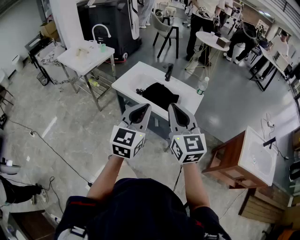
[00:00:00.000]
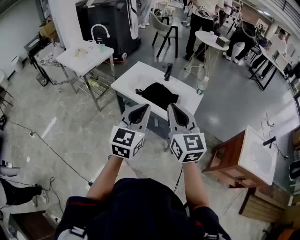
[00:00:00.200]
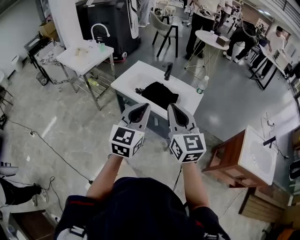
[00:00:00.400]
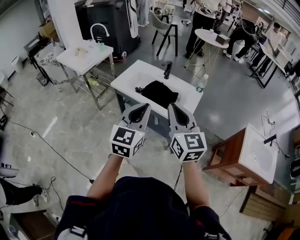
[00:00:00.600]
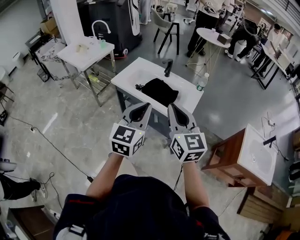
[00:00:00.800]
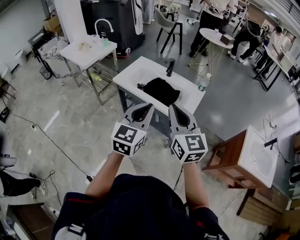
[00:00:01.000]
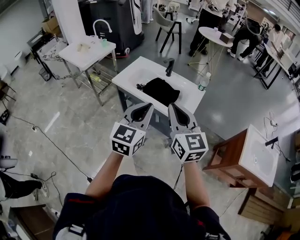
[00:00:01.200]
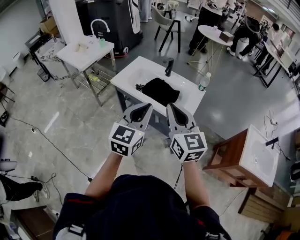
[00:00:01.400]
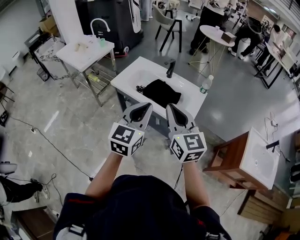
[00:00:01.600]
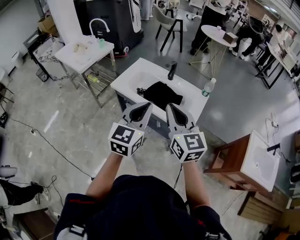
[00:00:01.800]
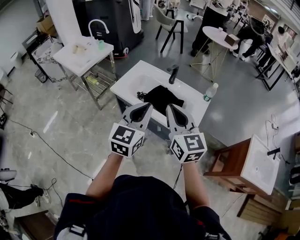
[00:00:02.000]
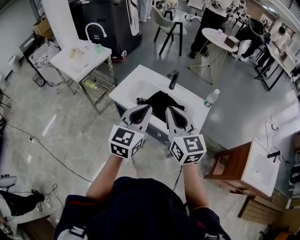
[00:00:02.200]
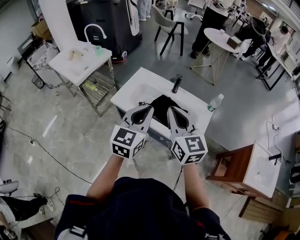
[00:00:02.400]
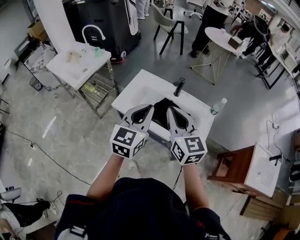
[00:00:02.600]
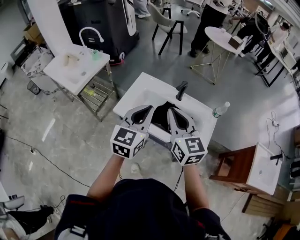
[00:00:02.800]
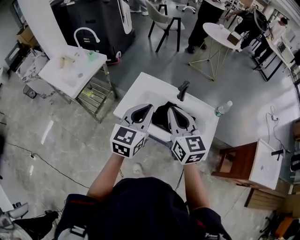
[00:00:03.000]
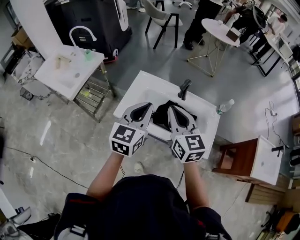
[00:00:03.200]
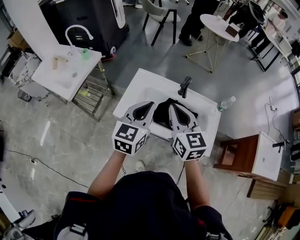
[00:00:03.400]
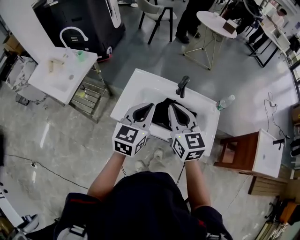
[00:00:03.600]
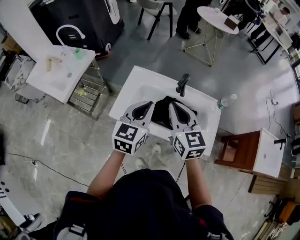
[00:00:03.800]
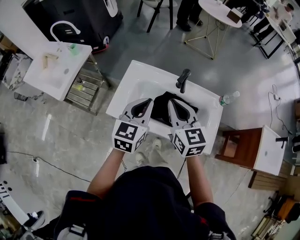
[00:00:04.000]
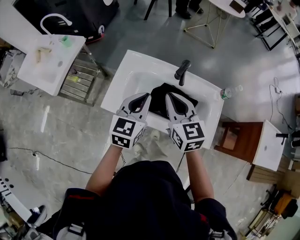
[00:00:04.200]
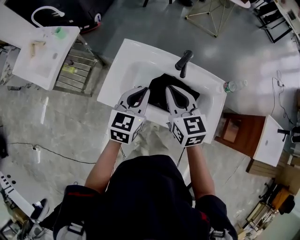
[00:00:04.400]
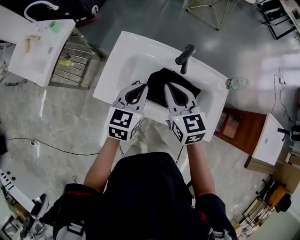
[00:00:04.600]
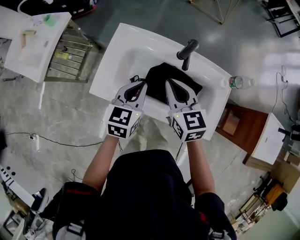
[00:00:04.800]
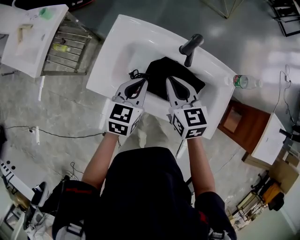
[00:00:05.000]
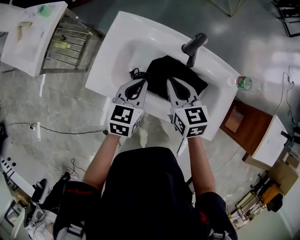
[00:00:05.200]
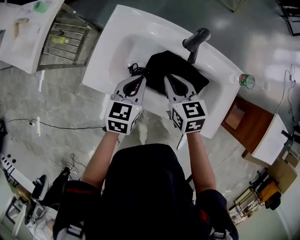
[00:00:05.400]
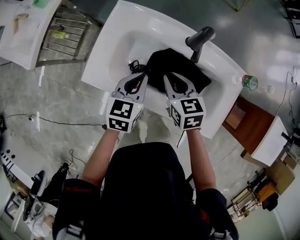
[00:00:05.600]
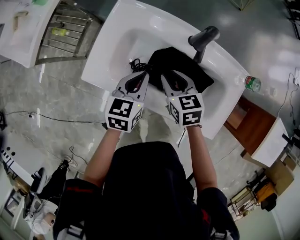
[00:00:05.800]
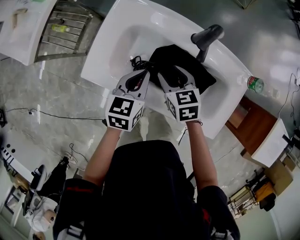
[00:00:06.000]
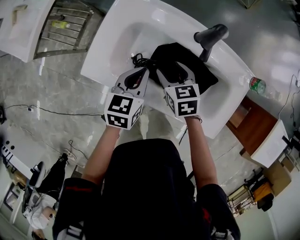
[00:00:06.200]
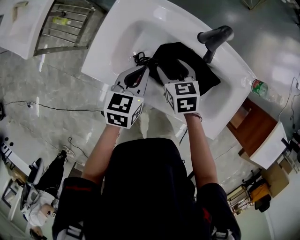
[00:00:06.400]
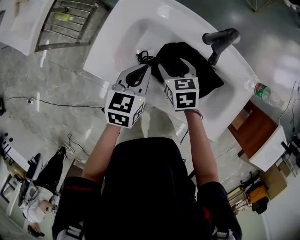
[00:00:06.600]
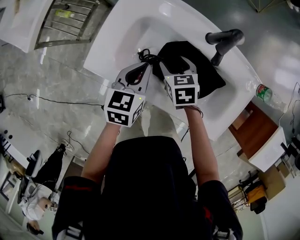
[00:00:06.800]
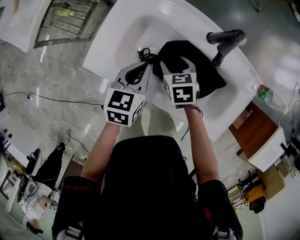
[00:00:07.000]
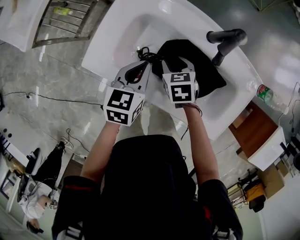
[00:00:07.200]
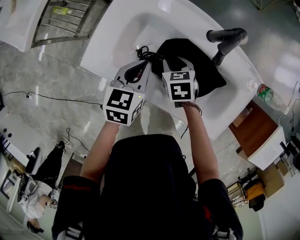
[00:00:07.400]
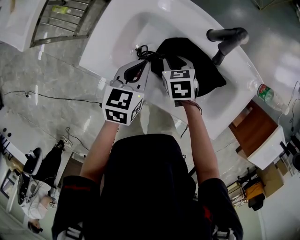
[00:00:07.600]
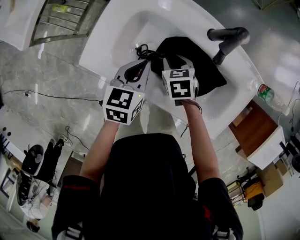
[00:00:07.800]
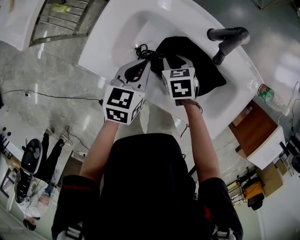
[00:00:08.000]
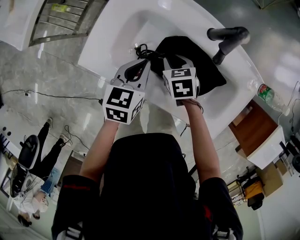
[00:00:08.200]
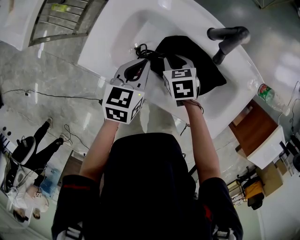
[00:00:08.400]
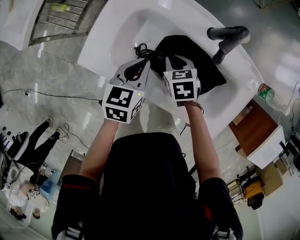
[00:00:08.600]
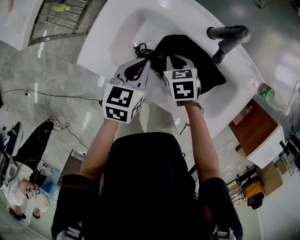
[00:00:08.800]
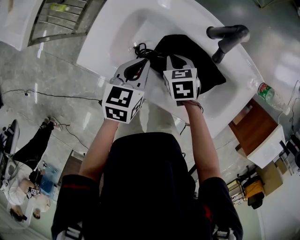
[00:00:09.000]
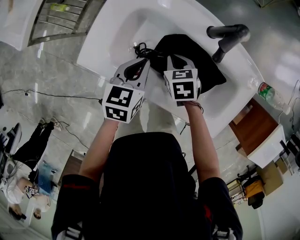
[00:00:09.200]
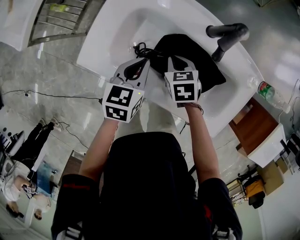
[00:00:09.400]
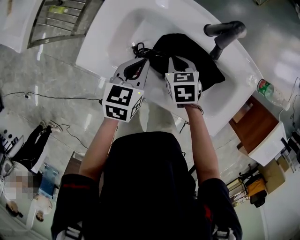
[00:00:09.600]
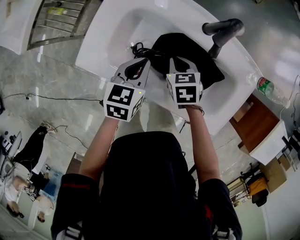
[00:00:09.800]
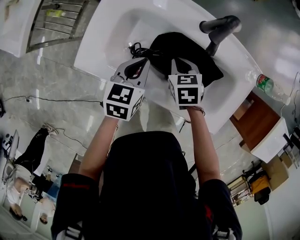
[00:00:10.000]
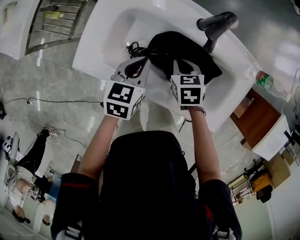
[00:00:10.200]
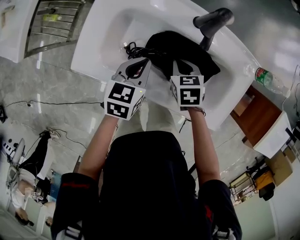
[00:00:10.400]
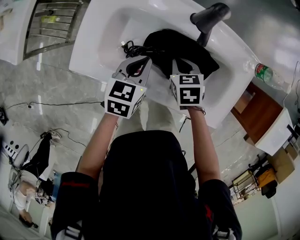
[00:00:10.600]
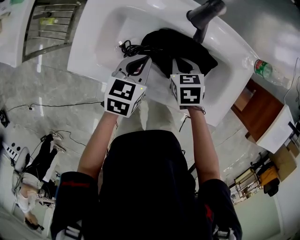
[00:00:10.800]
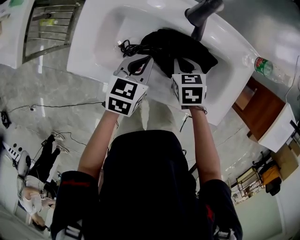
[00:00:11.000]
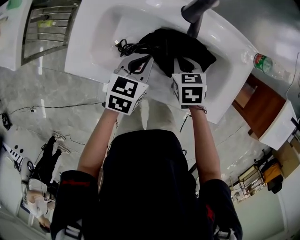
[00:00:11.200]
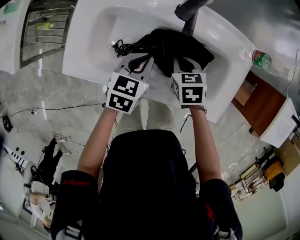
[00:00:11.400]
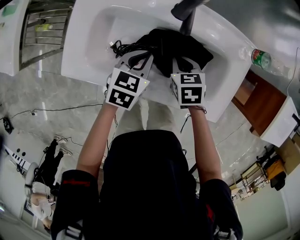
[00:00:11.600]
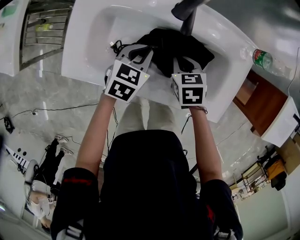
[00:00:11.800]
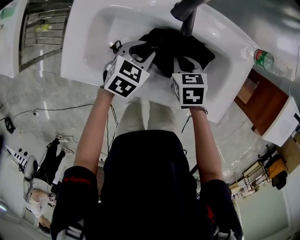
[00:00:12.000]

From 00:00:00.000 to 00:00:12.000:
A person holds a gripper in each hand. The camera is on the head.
From 00:00:00.000 to 00:00:01.600: The left gripper ends up approximately 5 cm from where it was; the right gripper moves approximately 5 cm.
From 00:00:01.600 to 00:00:03.000: Both grippers travel together forward and to the left, roughly 30 cm.
From 00:00:03.000 to 00:00:04.400: Both grippers move downward and forward, some 15 cm.
From 00:00:04.400 to 00:00:06.000: Both grippers move downward, approximately 20 cm. The right gripper rotates roughly 30 degrees, and opens up.
From 00:00:06.000 to 00:00:07.600: The right gripper travels downward by approximately 10 cm.
From 00:00:07.600 to 00:00:09.000: The right gripper closes up.
From 00:00:09.000 to 00:00:10.400: The right gripper shifts about 5 cm to the right.
From 00:00:10.400 to 00:00:12.000: The left gripper shifts approximately 10 cm to the right and downward, rotates approximately 30 degrees, and opens.

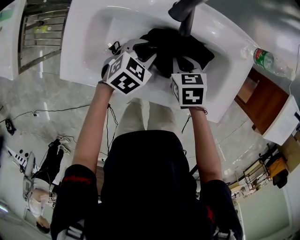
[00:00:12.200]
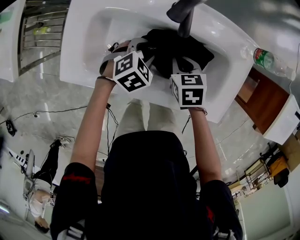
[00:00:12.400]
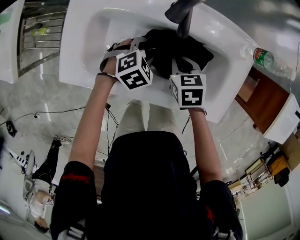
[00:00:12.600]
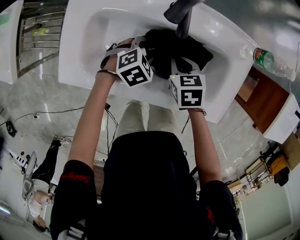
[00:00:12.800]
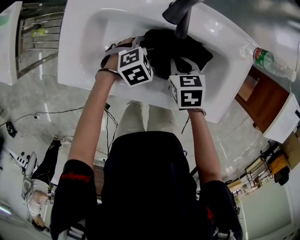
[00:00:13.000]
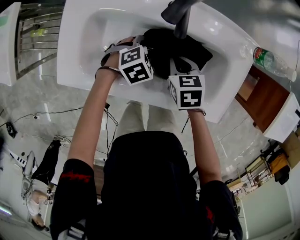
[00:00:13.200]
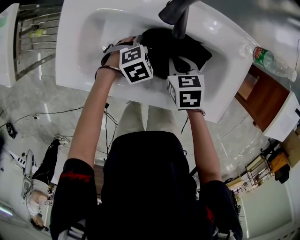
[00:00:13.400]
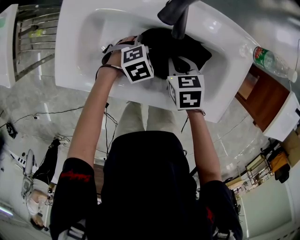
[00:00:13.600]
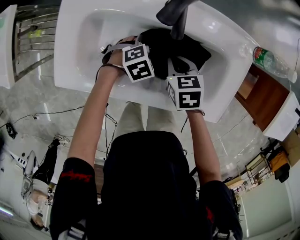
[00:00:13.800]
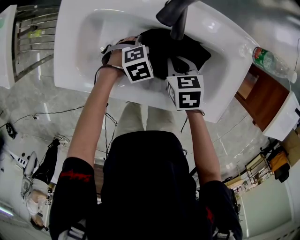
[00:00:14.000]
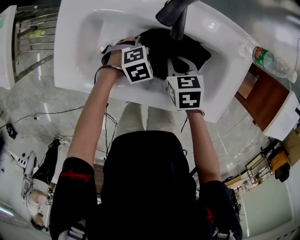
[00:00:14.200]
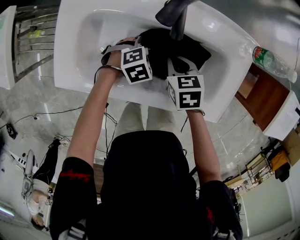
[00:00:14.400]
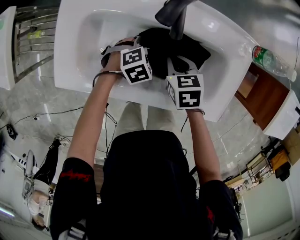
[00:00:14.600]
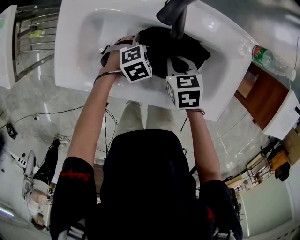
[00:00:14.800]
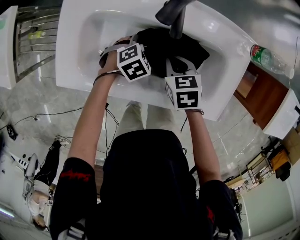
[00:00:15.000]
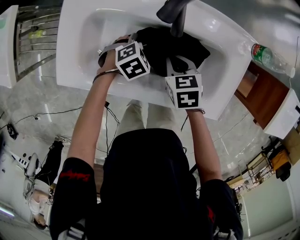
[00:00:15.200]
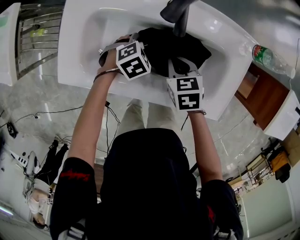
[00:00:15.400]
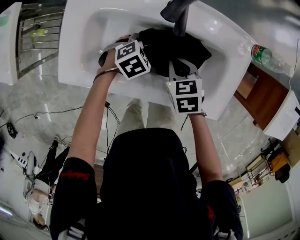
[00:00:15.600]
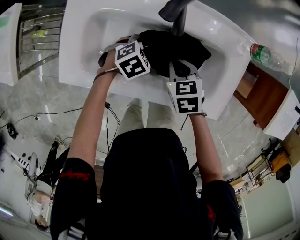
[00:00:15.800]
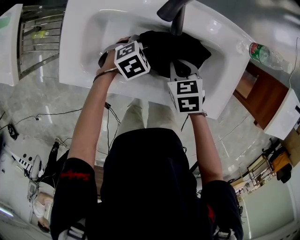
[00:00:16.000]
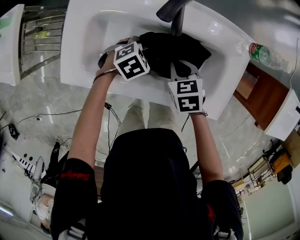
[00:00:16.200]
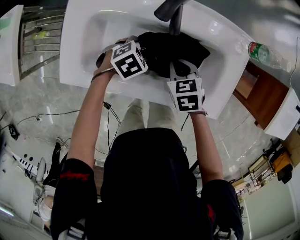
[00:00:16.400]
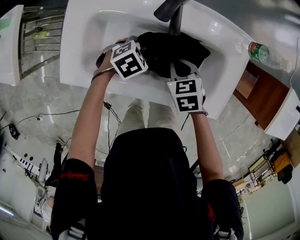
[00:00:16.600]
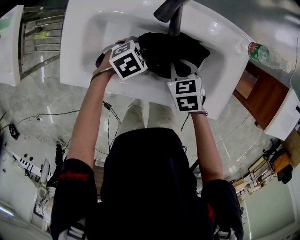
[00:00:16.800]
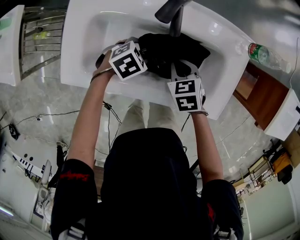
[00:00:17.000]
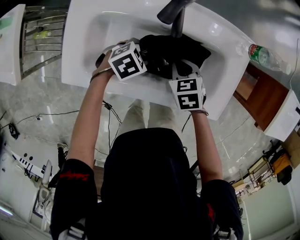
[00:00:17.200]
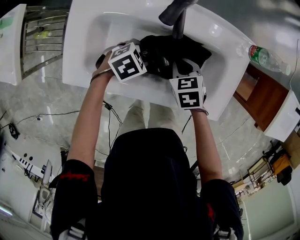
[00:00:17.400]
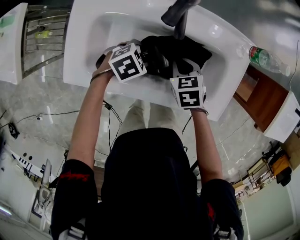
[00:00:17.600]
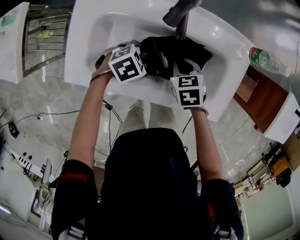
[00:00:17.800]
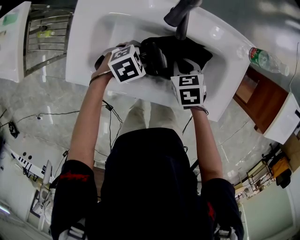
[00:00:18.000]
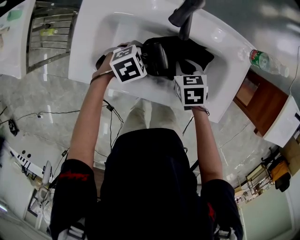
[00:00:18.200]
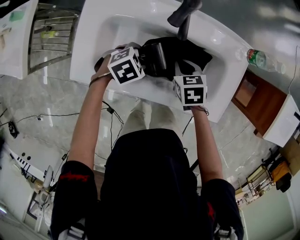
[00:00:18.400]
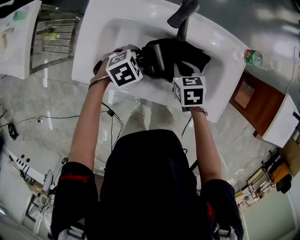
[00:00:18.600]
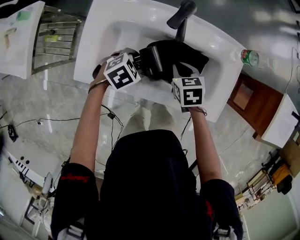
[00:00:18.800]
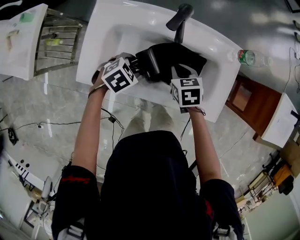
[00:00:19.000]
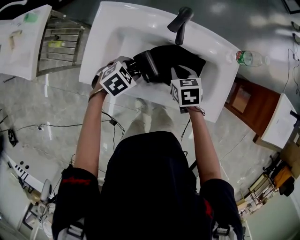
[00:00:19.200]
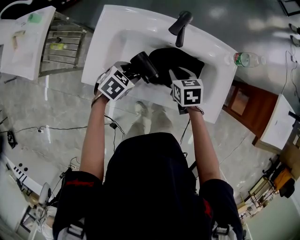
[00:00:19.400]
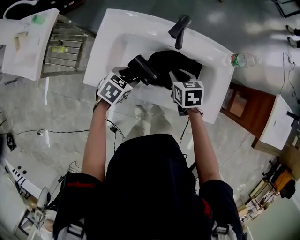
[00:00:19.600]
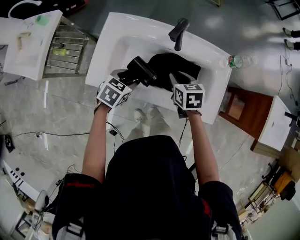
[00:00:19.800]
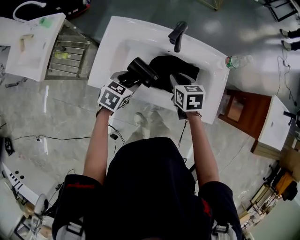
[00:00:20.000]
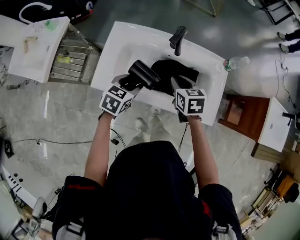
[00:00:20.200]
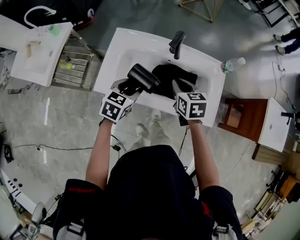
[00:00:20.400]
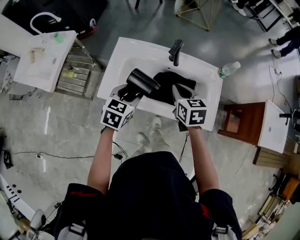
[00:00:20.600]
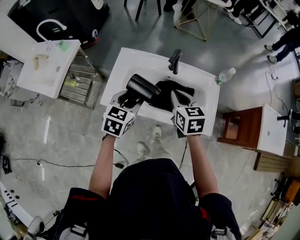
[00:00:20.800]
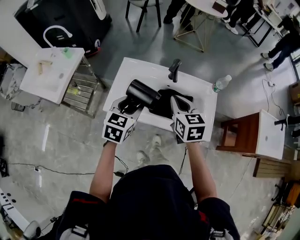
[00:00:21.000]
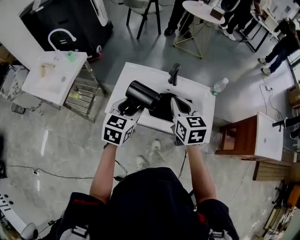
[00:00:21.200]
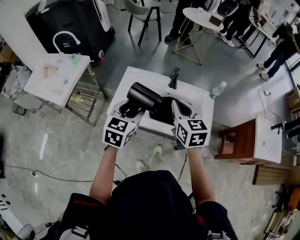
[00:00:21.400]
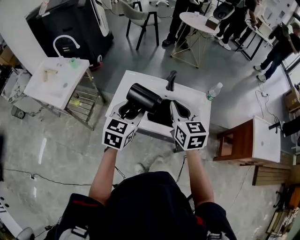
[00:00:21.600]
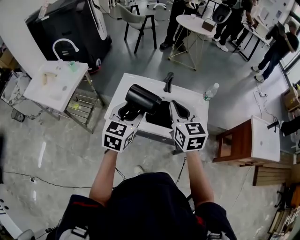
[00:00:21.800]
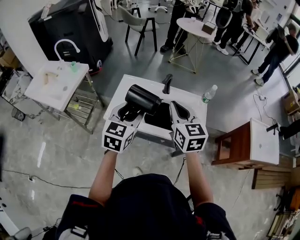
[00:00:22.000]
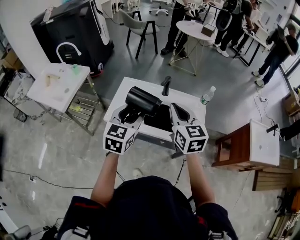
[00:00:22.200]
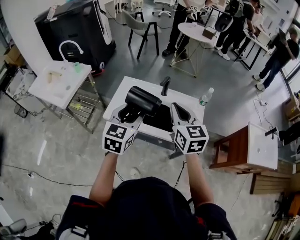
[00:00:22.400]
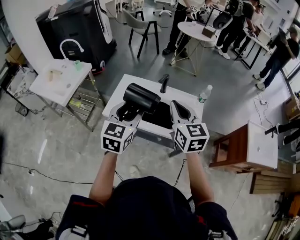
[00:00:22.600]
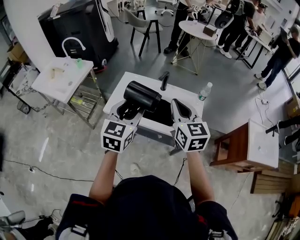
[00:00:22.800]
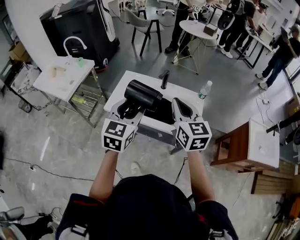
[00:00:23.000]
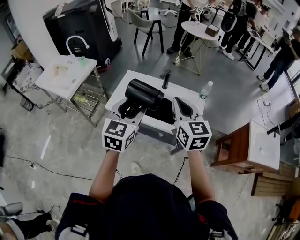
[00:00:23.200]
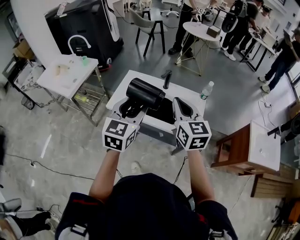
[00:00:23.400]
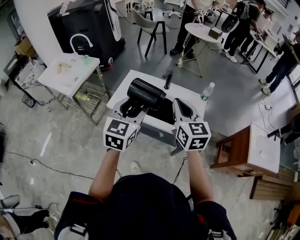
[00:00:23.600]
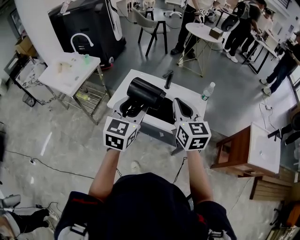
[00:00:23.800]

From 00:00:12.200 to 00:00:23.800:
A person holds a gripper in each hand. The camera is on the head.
From 00:00:12.200 to 00:00:13.600: The left gripper travels downward by some 5 cm, rotates approximately 30 degrees, and opens.
From 00:00:13.600 to 00:00:15.000: Both grippers stay about where they are.
From 00:00:15.000 to 00:00:16.600: The grippers make only small movements.
From 00:00:16.600 to 00:00:18.000: The grippers make only small movements.
From 00:00:18.000 to 00:00:19.400: The two grippers go about 5 cm upward. The left gripper rotates some 20 degrees.
From 00:00:19.400 to 00:00:21.000: The two grippers go some 25 cm upward. The right gripper rotates some 30 degrees. Meanwhile the left gripper points its fingers roughly 30 degrees further upward.
From 00:00:21.000 to 00:00:22.400: Both grippers travel together upward and backward, approximately 15 cm.
From 00:00:22.400 to 00:00:23.800: Both grippers move backward, approximately 5 cm.
